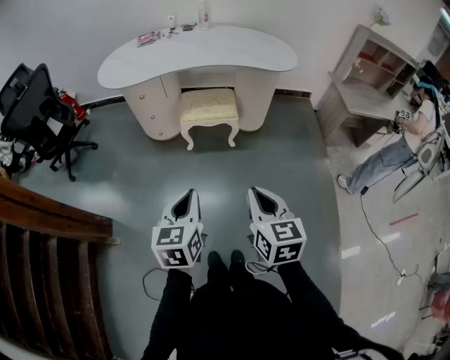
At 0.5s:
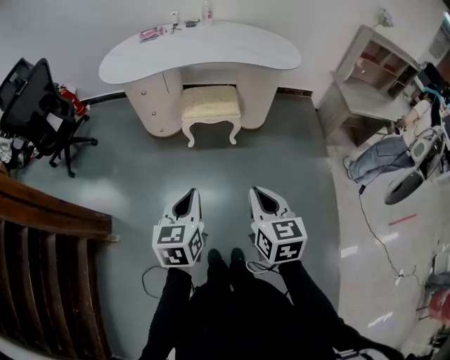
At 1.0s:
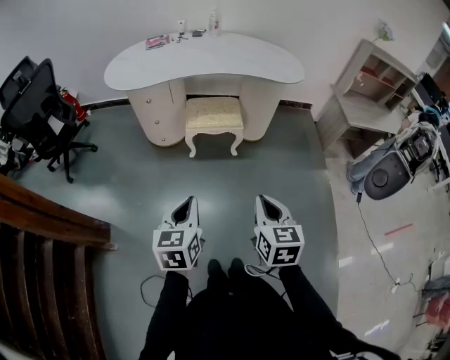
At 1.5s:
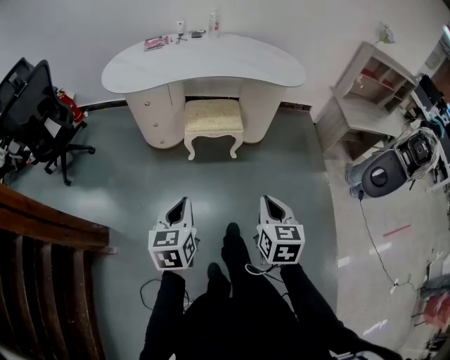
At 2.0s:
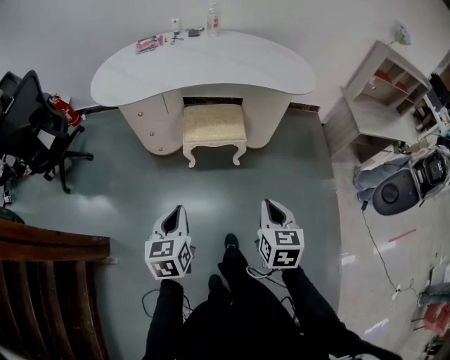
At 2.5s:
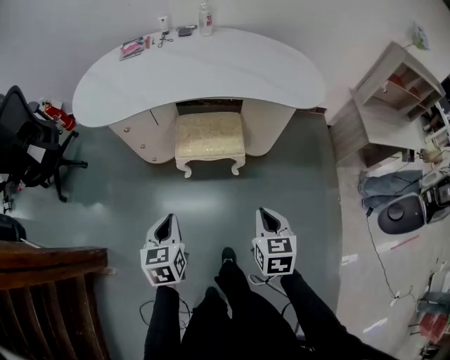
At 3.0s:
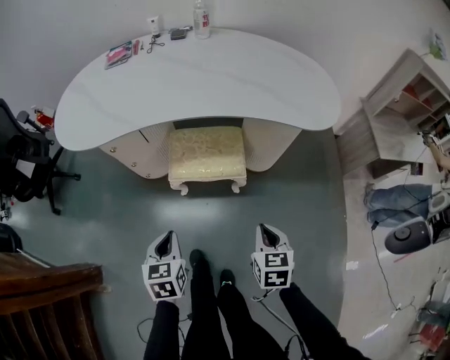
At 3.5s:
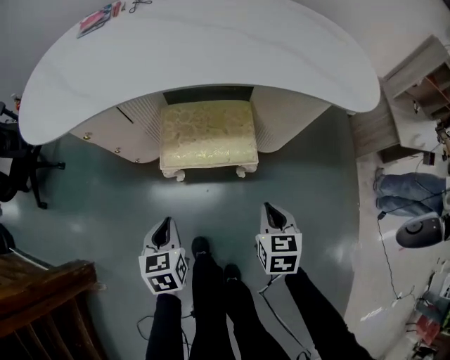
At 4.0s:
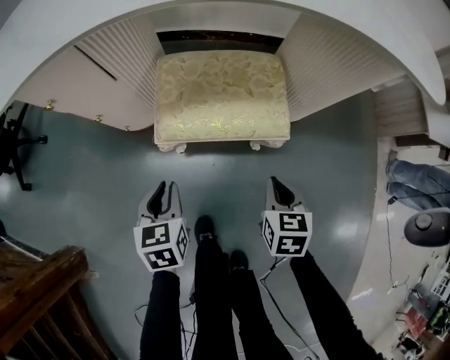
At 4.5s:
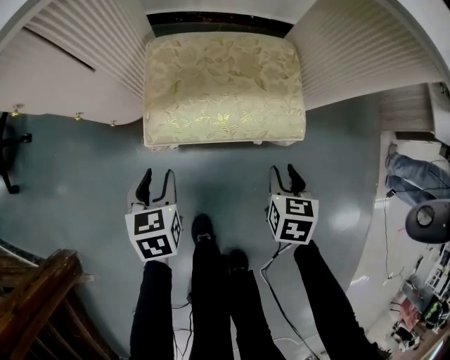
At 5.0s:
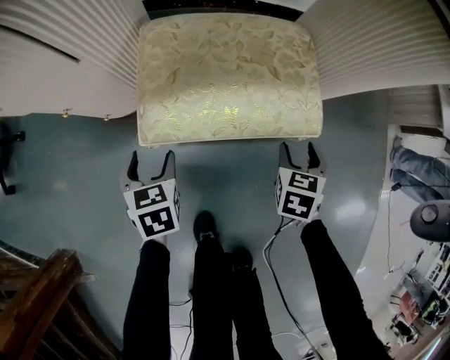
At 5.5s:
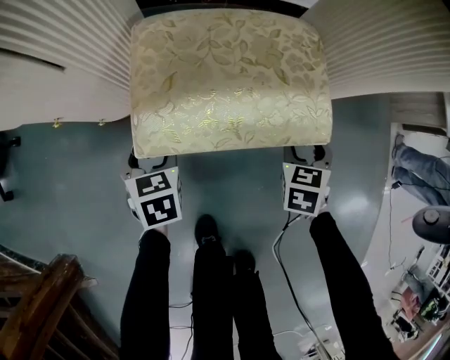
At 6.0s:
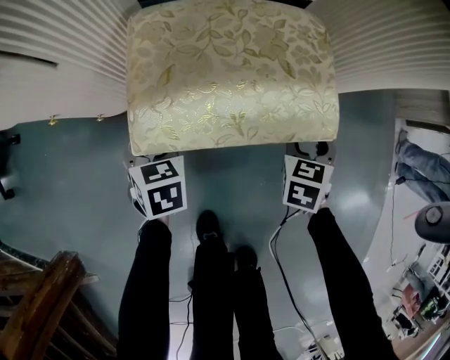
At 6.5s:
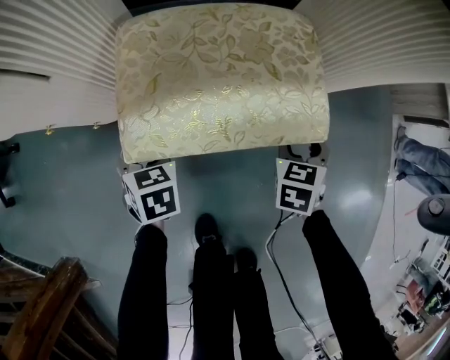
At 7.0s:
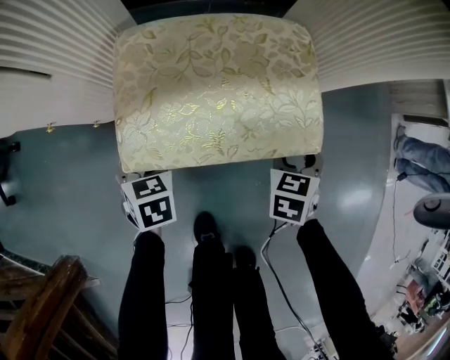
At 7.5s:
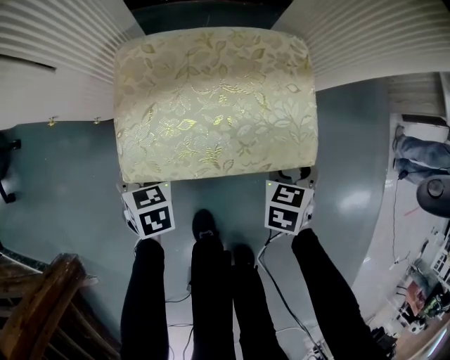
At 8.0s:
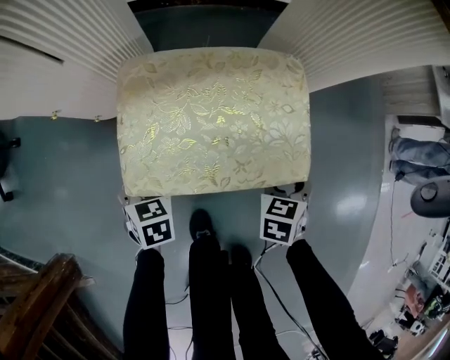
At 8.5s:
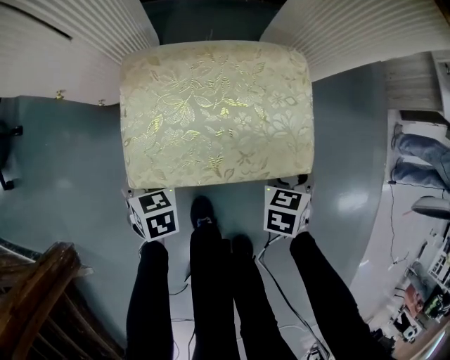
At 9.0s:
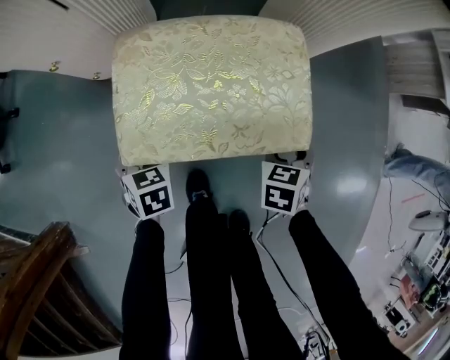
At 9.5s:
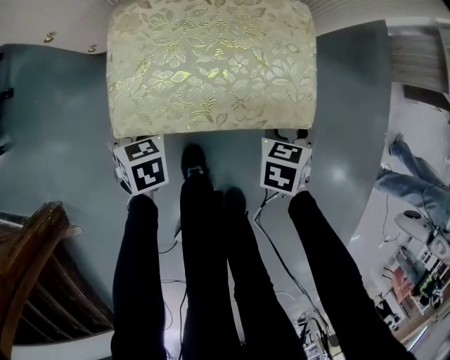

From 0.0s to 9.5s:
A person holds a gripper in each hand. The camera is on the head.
From 0.0s to 2.0s: The right gripper goes about 15 cm forward and downward, while the left gripper moves forward, to the left and downward, roughly 15 cm.
From 2.0s to 4.0s: The two grippers go approximately 50 cm downward and forward.
From 4.0s to 5.5s: The left gripper goes some 20 cm downward and forward, and opens. Meanwhile the right gripper shifts approximately 15 cm forward and downward, rotates about 20 degrees, and opens.
From 5.5s to 9.5s: There are only small adjustments of the grippers.

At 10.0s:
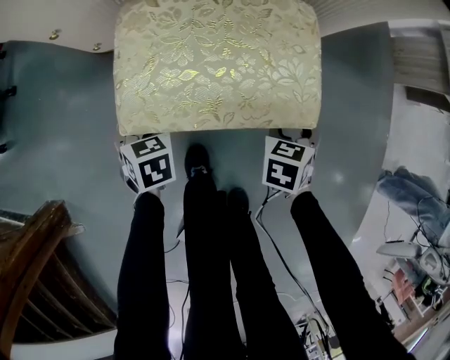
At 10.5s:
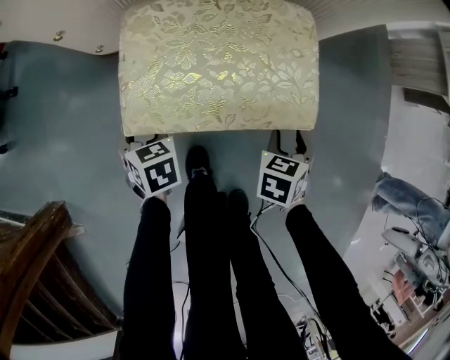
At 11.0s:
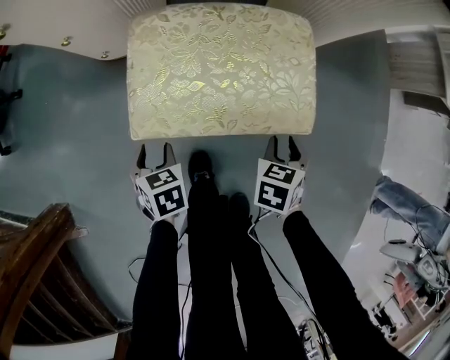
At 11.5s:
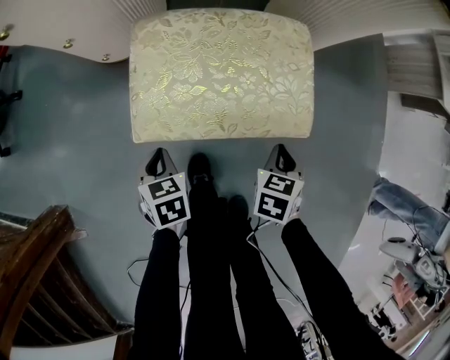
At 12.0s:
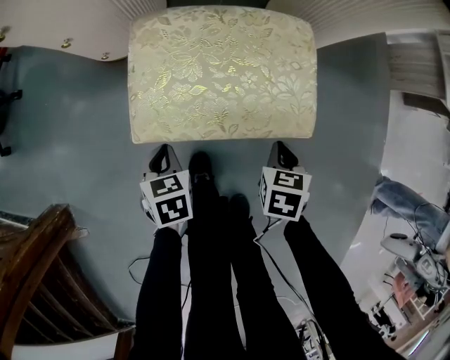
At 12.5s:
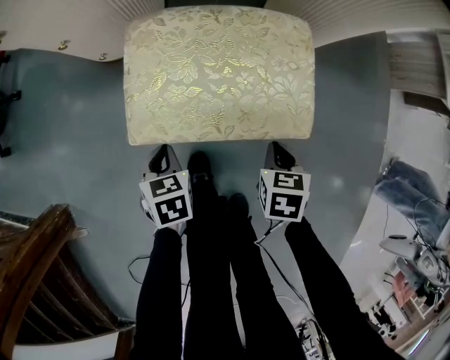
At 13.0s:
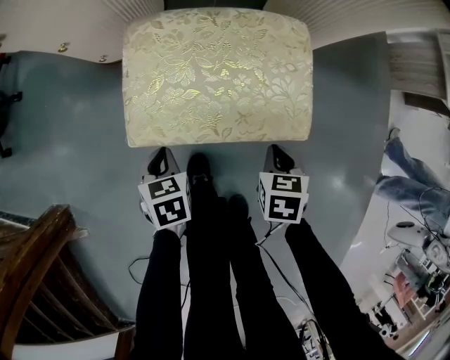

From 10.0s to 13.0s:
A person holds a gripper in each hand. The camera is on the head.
From 10.0s to 11.5s: The two grippers go some 5 cm backward. The right gripper closes up, while the left gripper closes up.
From 11.5s to 13.0s: The grippers stay close to where they were, moving slightly.

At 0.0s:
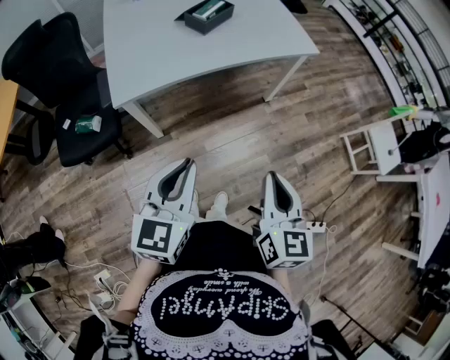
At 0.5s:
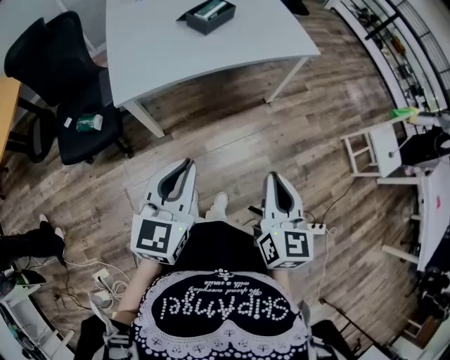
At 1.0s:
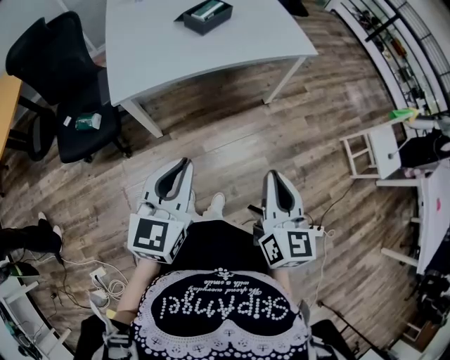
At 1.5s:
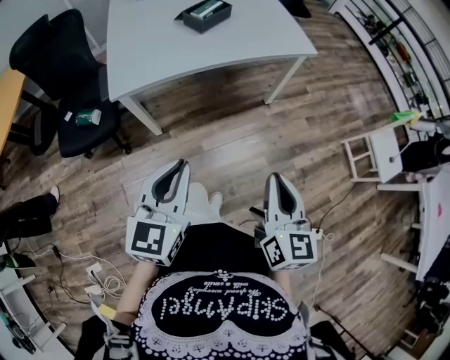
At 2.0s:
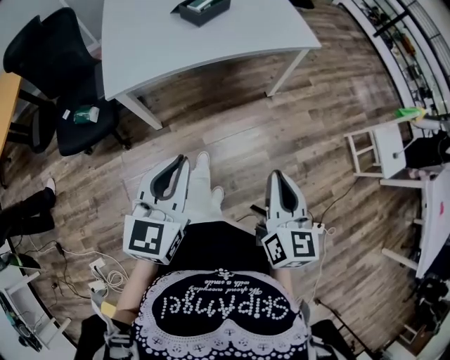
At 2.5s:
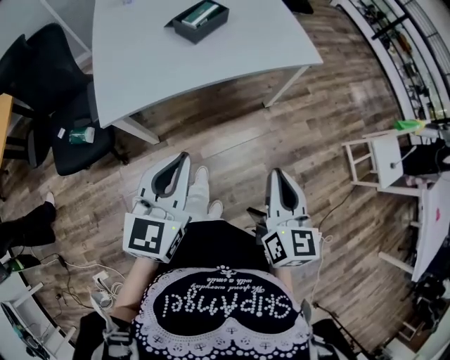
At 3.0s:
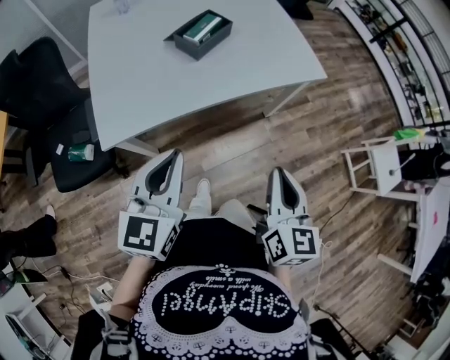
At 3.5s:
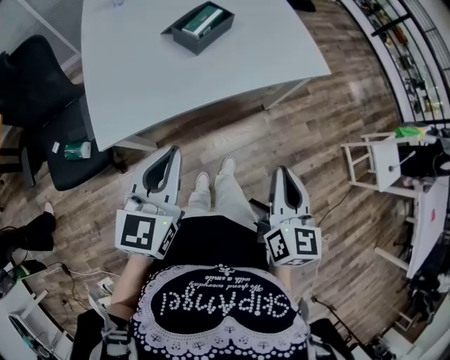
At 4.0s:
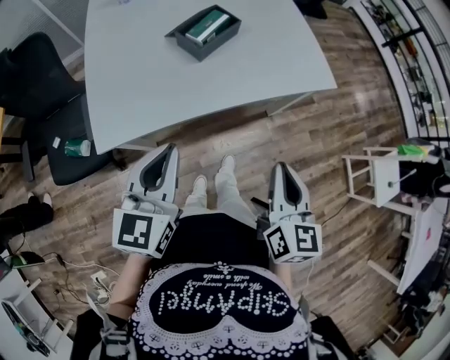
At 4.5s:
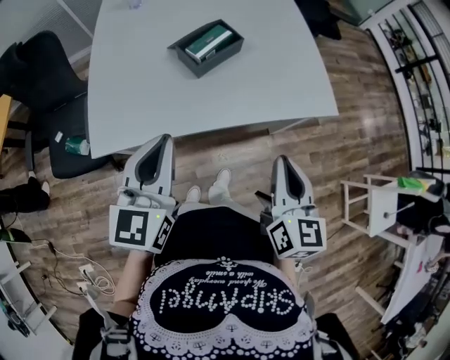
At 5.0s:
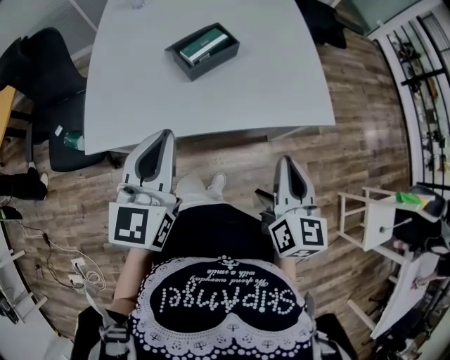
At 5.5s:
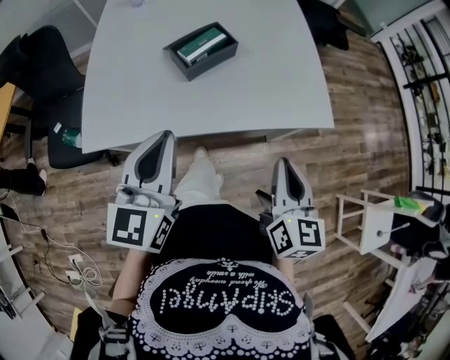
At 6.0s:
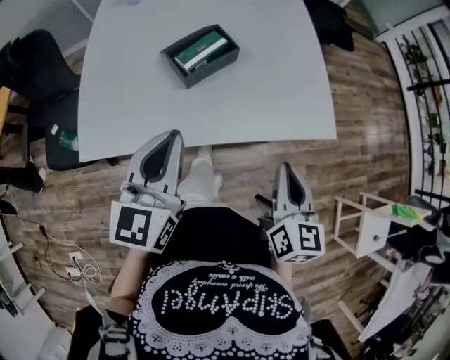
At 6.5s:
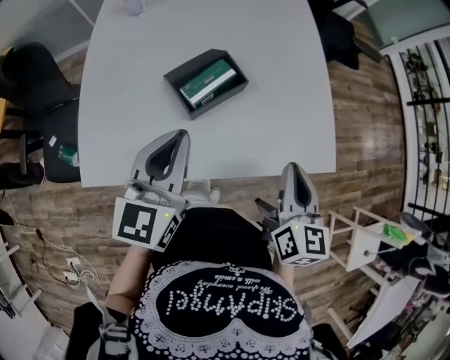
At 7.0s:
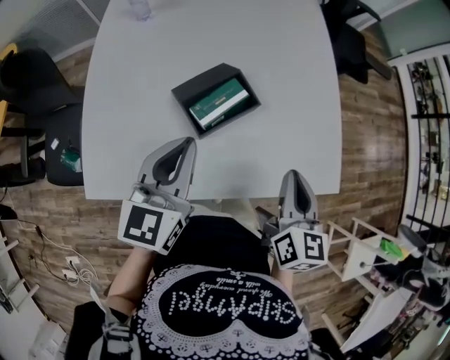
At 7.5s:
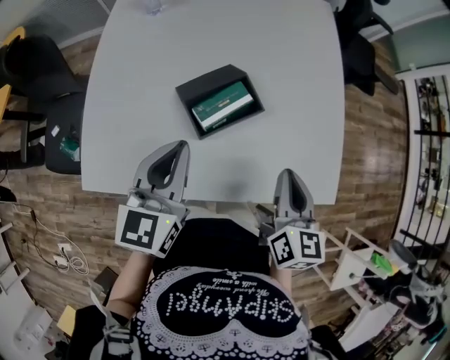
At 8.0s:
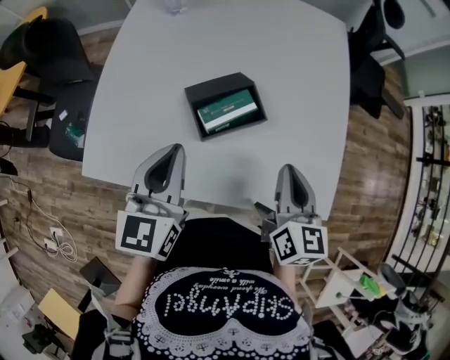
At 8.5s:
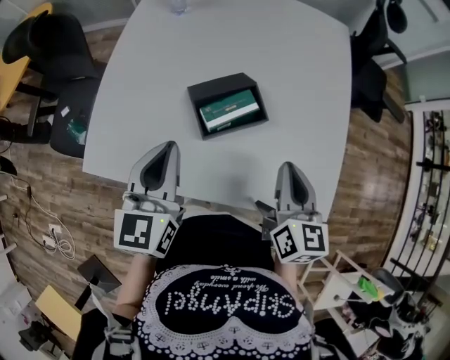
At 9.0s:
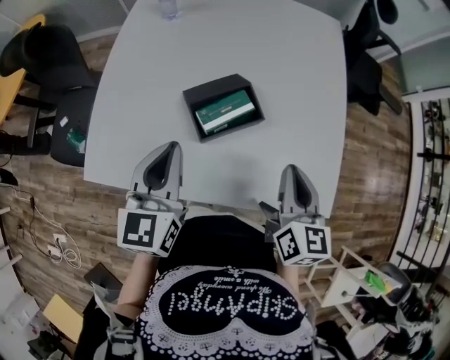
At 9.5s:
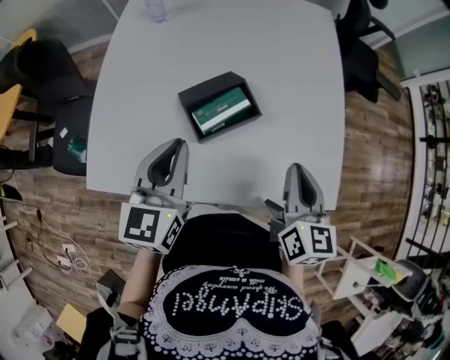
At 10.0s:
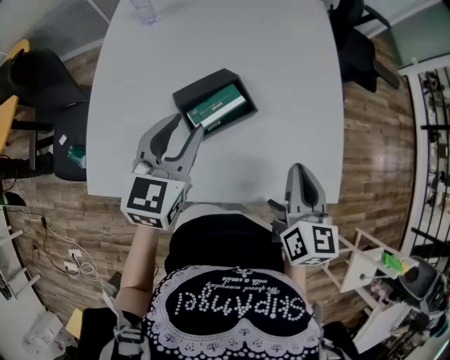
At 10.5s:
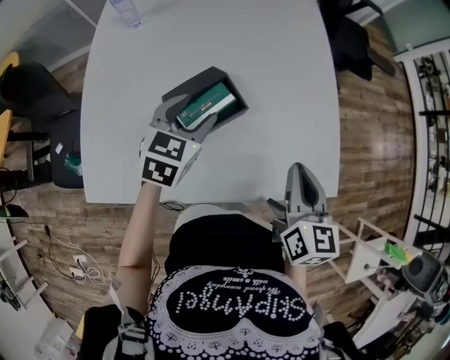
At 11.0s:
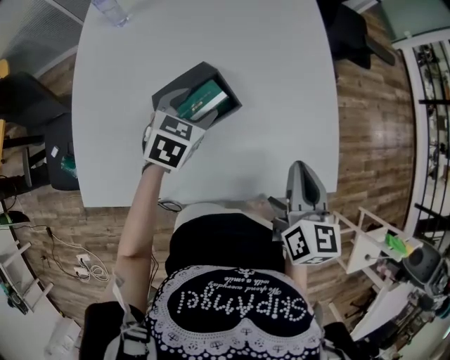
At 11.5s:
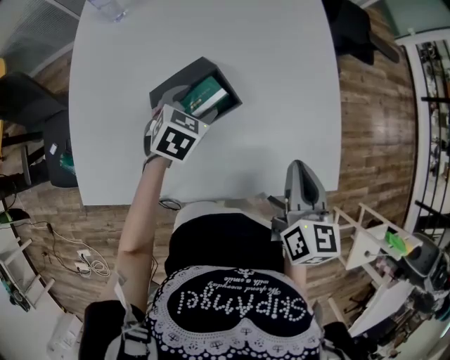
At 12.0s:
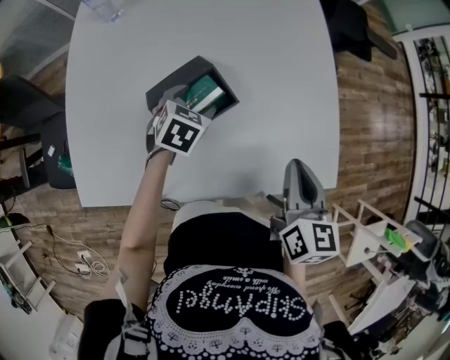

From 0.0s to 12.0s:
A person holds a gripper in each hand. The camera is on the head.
From 0.0s to 2.0s: Both grippers travel together to the right, some 5 cm.
From 2.0s to 4.0s: Both grippers travel together forward, about 25 cm.
From 4.0s to 6.0s: The grippers both shift forward and to the right by roughly 20 cm.
From 6.0s to 8.0s: The right gripper moves forward, roughly 25 cm. Meanwhile the left gripper shifts roughly 15 cm forward and to the left.
From 8.0s to 10.0s: The left gripper goes about 5 cm forward, and opens.
From 10.0s to 12.0s: The left gripper travels downward and forward by roughly 20 cm, tips its fingers downward by about 30 degrees, and opens up.

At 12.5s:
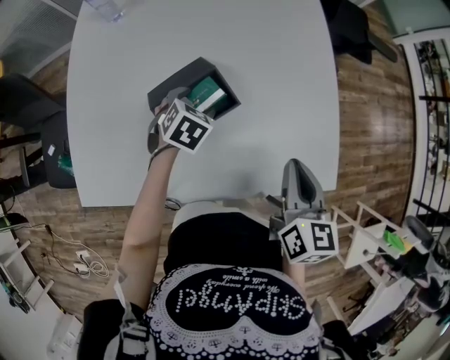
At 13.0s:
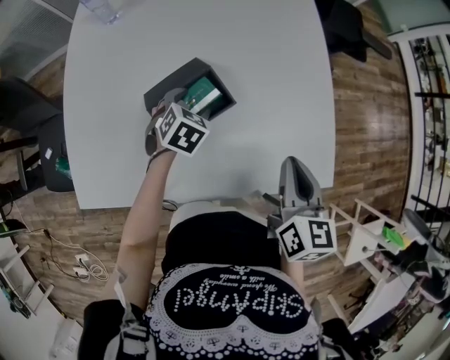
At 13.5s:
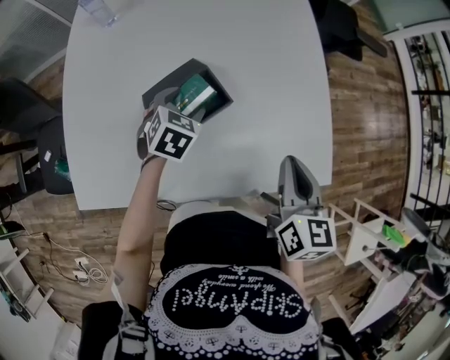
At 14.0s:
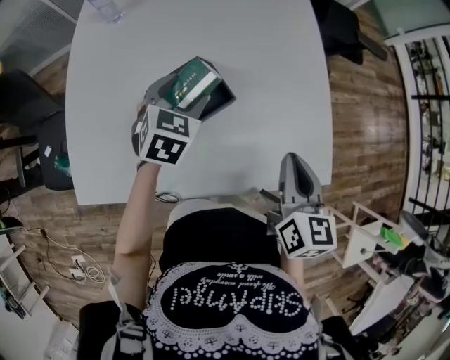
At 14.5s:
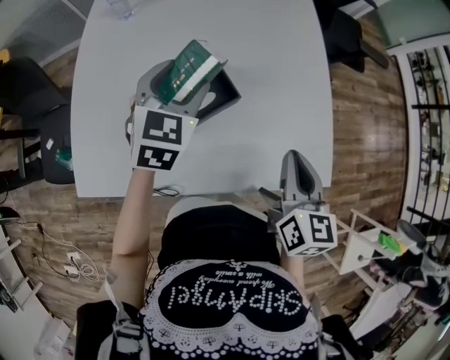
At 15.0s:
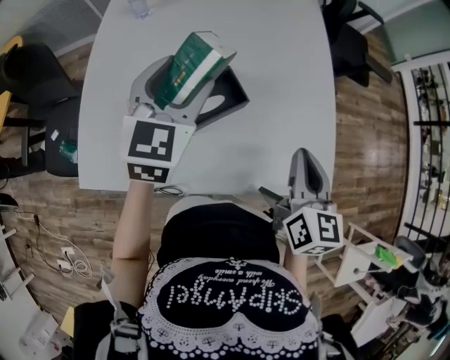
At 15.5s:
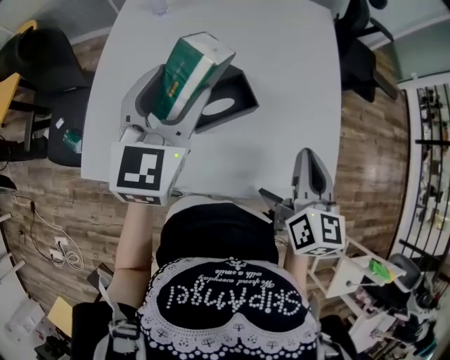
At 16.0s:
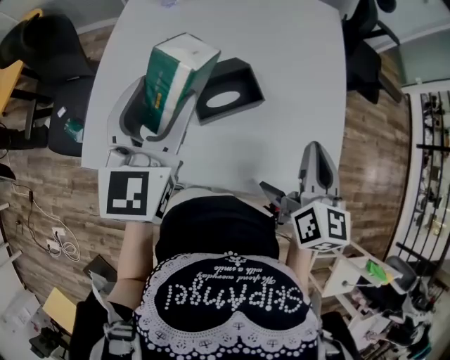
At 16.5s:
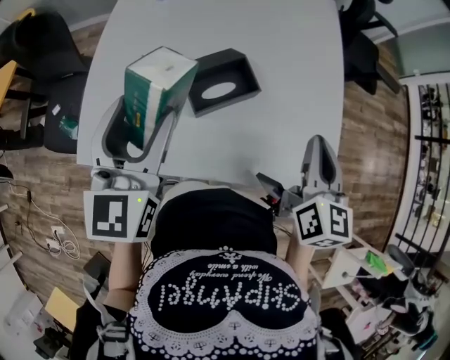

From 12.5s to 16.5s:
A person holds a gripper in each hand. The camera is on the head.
From 12.5s to 14.5s: The left gripper moves upward, approximately 20 cm, and tilts its fingers some 30 degrees upward.
From 14.5s to 16.5s: The left gripper travels backward, to the left and upward by approximately 20 cm, and rotates about 30 degrees.
